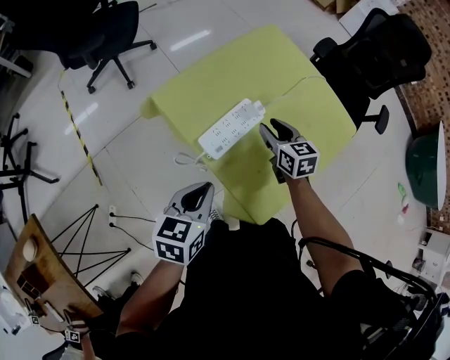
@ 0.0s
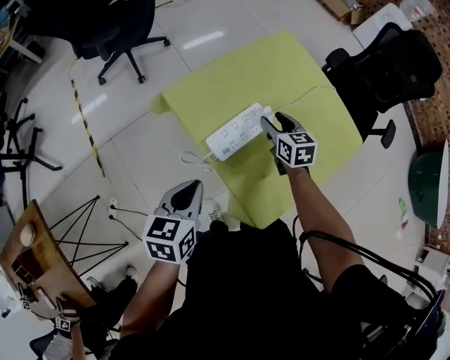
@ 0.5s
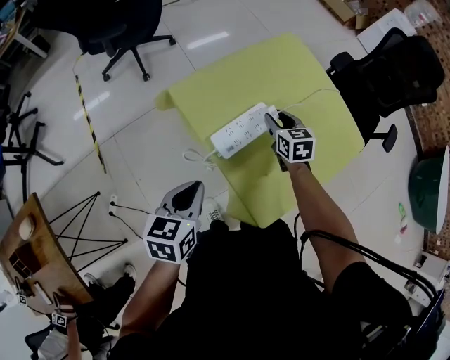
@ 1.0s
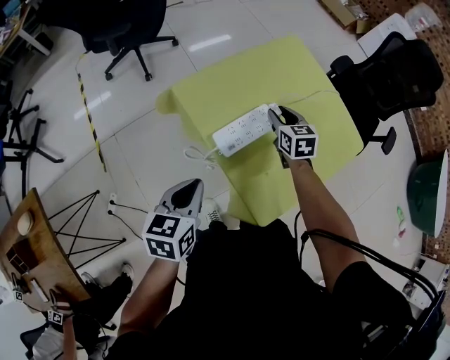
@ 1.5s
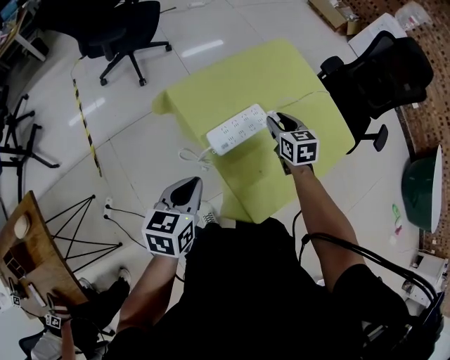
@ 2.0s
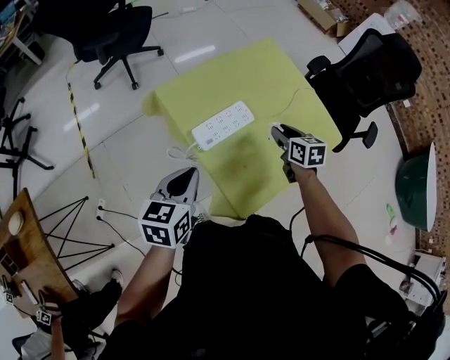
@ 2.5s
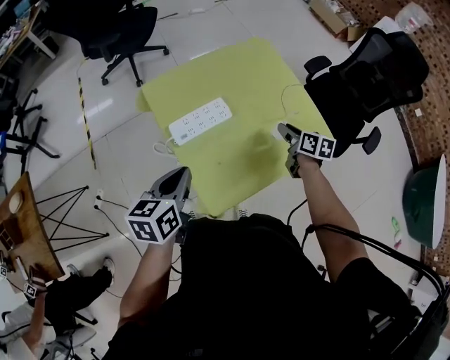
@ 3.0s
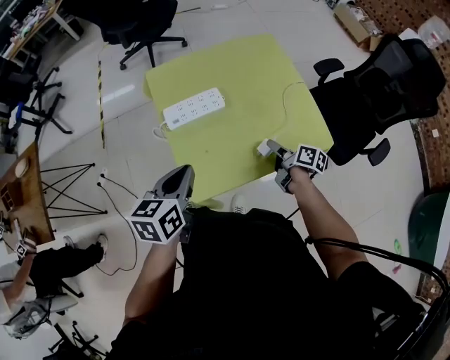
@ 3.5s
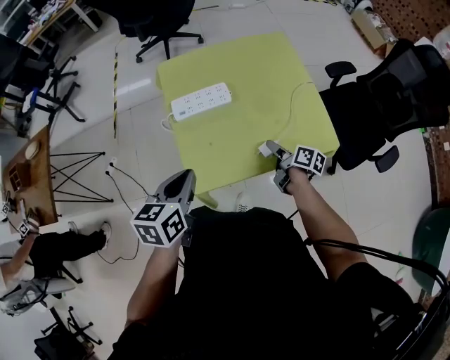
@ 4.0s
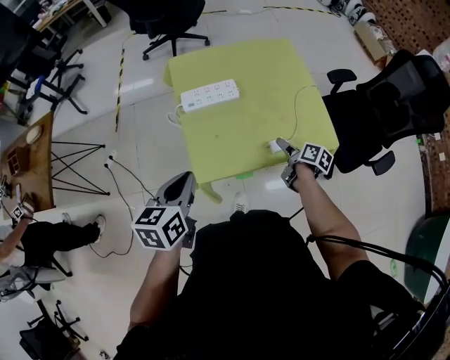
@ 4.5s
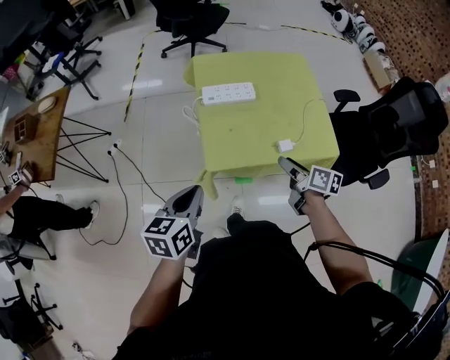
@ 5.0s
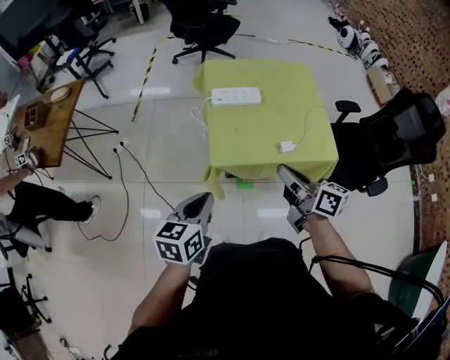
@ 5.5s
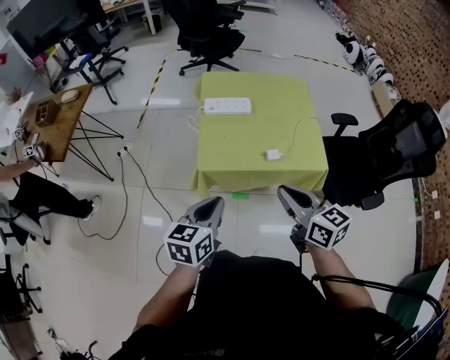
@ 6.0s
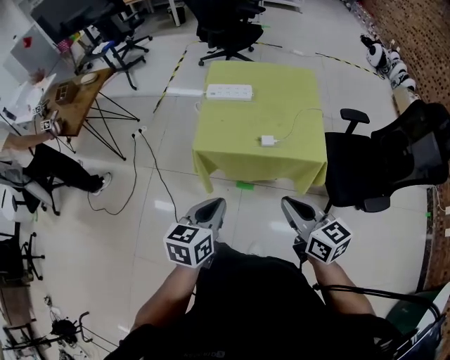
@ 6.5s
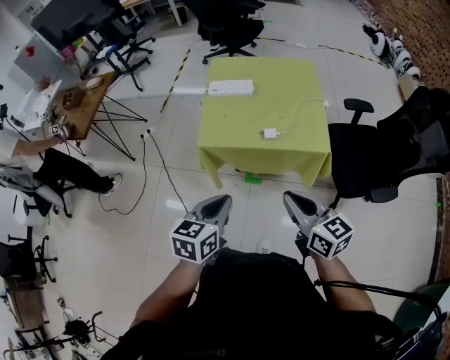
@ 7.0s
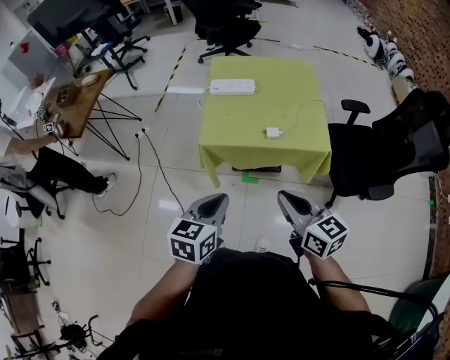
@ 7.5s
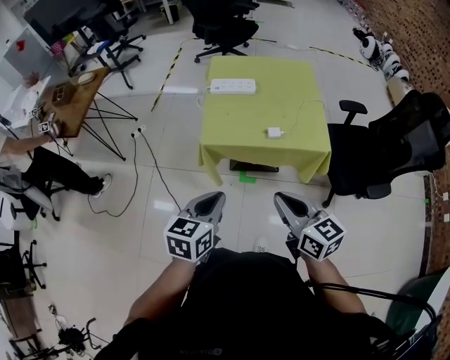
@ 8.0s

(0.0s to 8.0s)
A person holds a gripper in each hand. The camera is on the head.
0.0s - 2.0s: The left gripper shifts by approximately 5 cm.
2.0s - 4.0s: The right gripper shifts by approximately 25 cm, and twists some 50 degrees clockwise, seen from behind, while the left gripper moves some 25 cm, and swivels roughly 20 degrees.
4.0s - 6.0s: The left gripper is displaced backward by some 20 cm, while the right gripper is displaced upward and backward by roughly 35 cm, twists some 50 degrees counterclockwise, seen from behind, and closes up.
6.0s - 8.0s: The two grippers go roughly 10 cm backward.

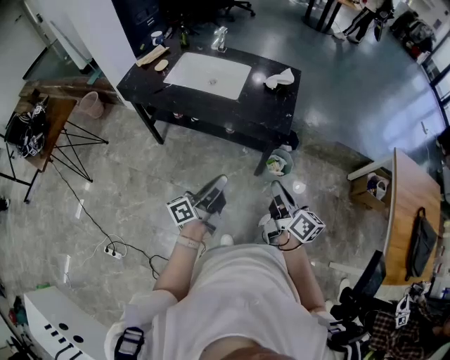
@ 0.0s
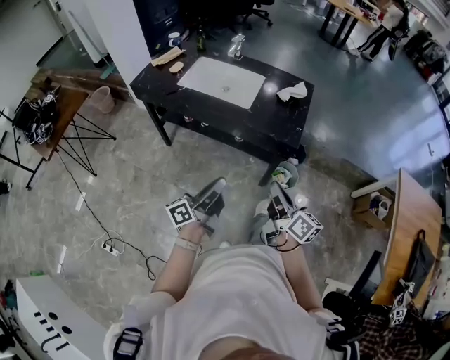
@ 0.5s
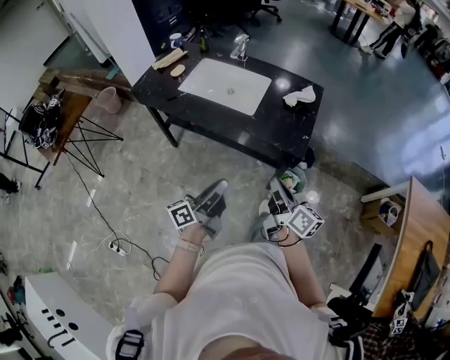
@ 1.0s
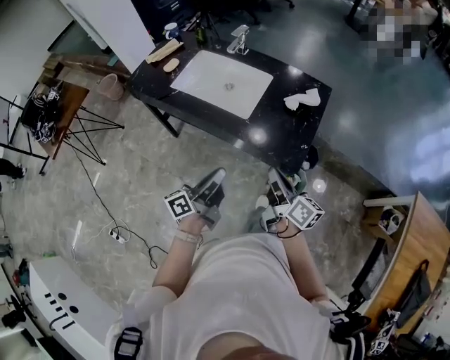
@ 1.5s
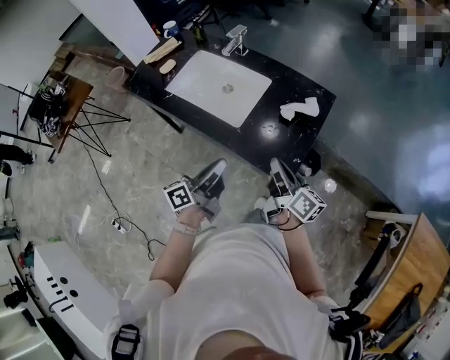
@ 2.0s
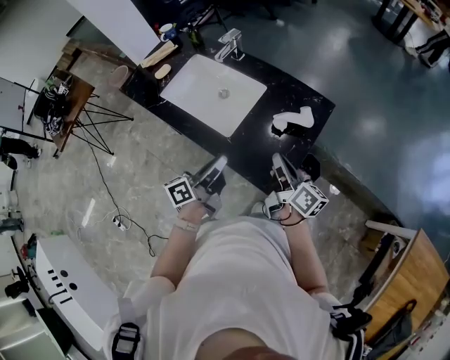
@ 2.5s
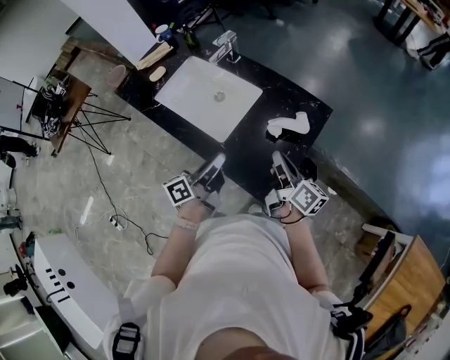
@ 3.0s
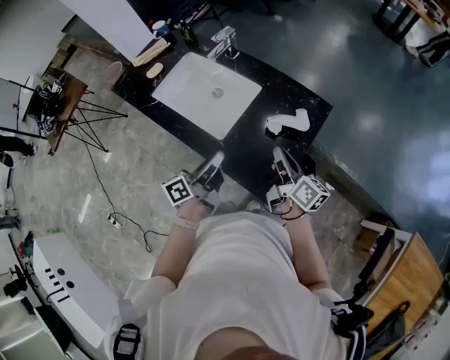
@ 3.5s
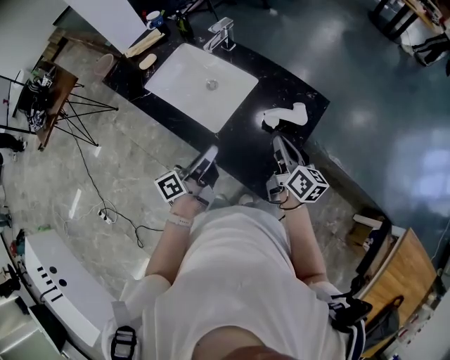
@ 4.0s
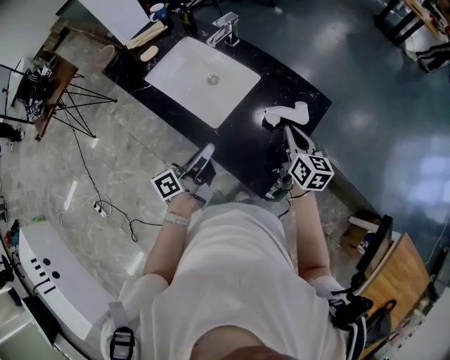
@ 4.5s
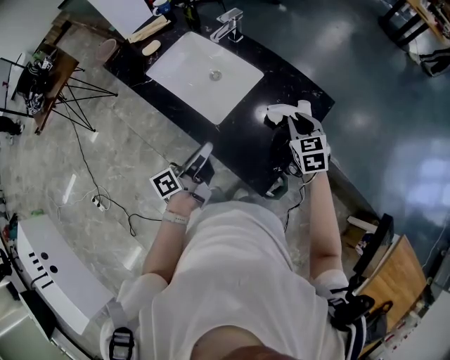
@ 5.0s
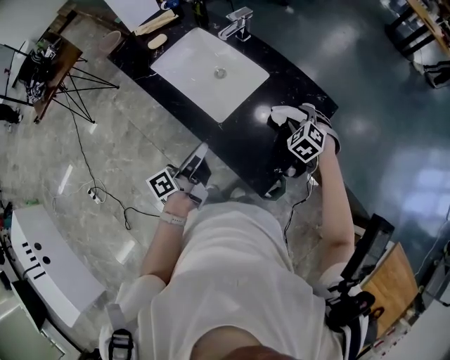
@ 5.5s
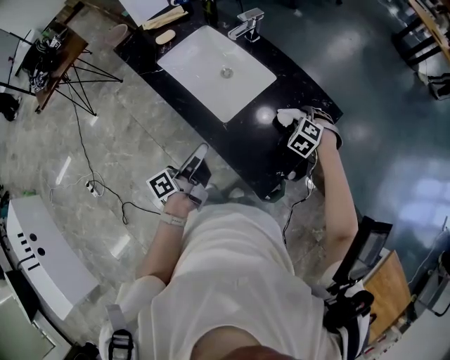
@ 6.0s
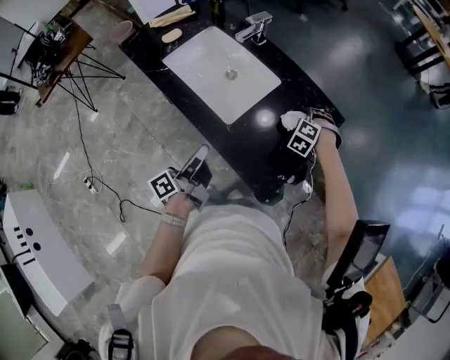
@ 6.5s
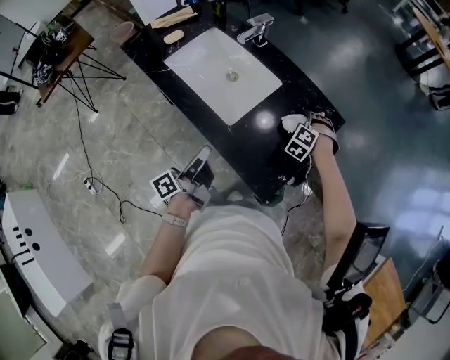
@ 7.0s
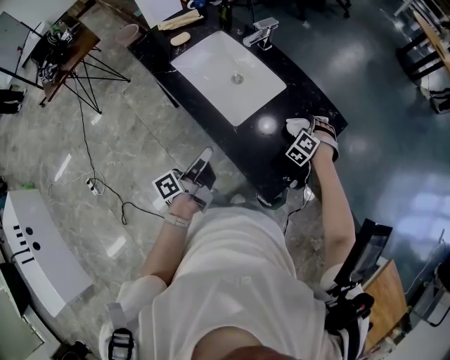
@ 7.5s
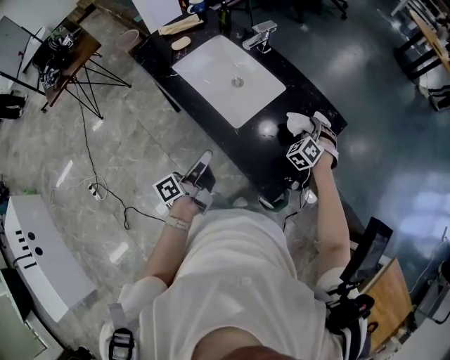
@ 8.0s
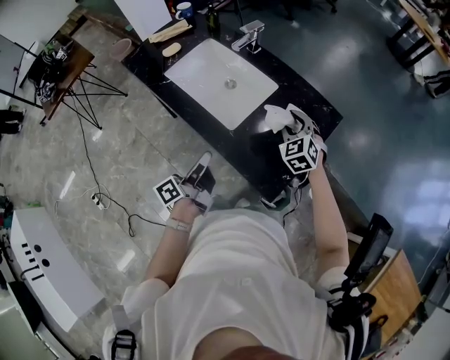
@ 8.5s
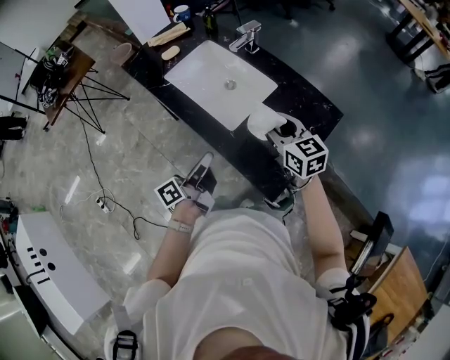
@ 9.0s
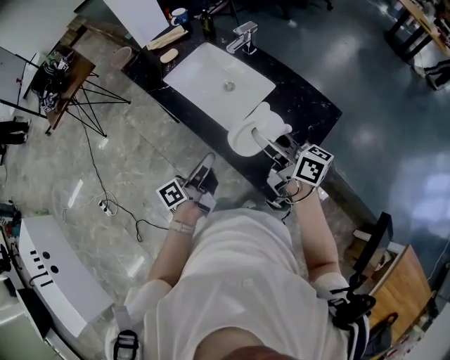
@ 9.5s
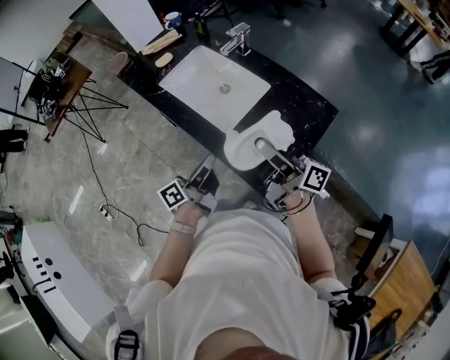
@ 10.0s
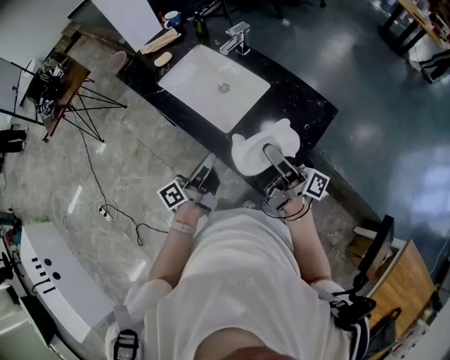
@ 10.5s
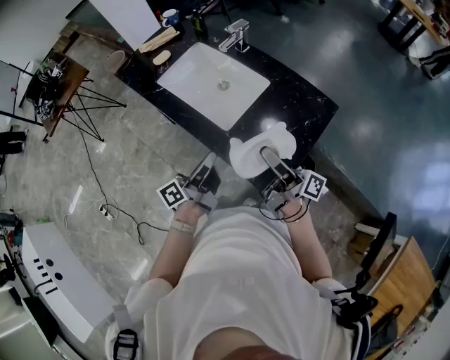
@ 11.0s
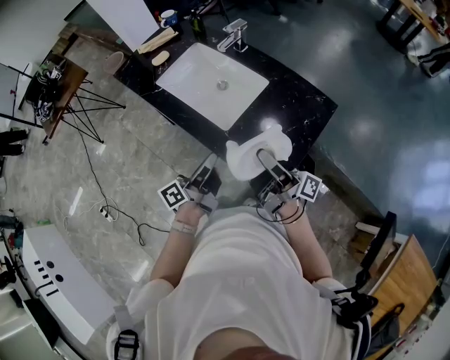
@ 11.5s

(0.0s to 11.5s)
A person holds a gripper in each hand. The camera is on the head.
0.0s - 2.0s: The two grippers go about 30 cm forward. The left gripper swivels approximately 20 degrees.
2.0s - 4.0s: The left gripper goes about 10 cm forward, while the right gripper shifts roughly 15 cm forward and to the right.
4.0s - 6.0s: The left gripper is displaced to the left by some 5 cm; the right gripper shifts roughly 15 cm downward and forward, twists about 100 degrees counterclockwise, seen from behind, and opens its fingers.
6.0s - 7.5s: The grippers move only a little.
7.5s - 9.5s: The right gripper heads upward, covering roughly 25 cm, and tilts its fingers about 50 degrees upward.
9.5s - 11.5s: The right gripper is displaced backward by about 5 cm, and rotates approximately 50 degrees.

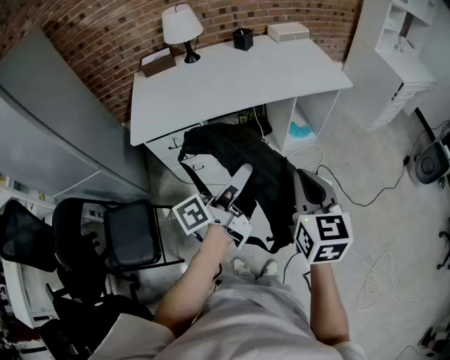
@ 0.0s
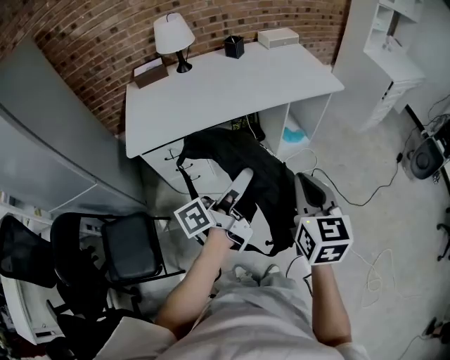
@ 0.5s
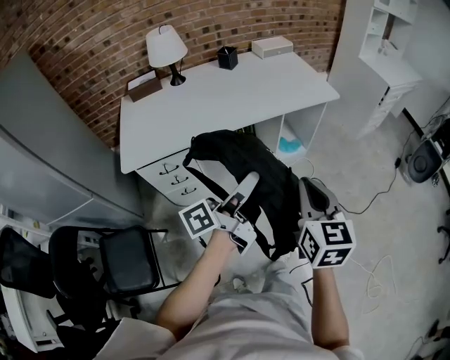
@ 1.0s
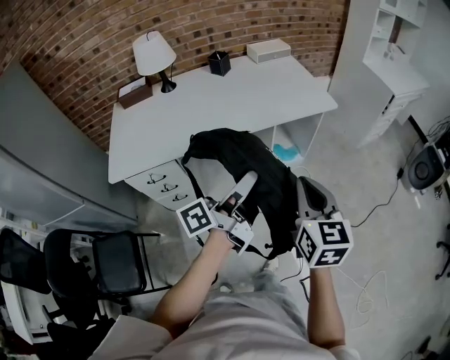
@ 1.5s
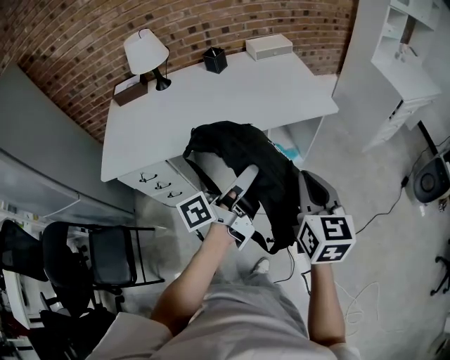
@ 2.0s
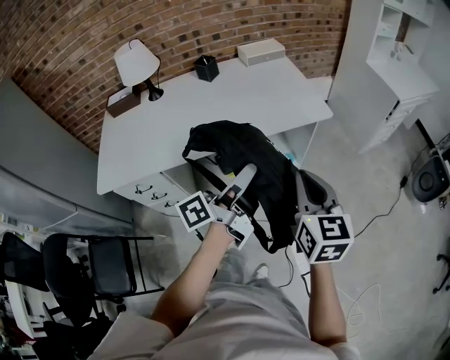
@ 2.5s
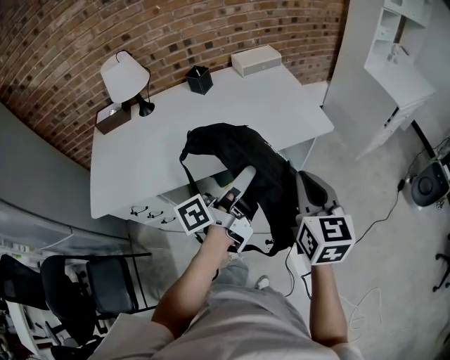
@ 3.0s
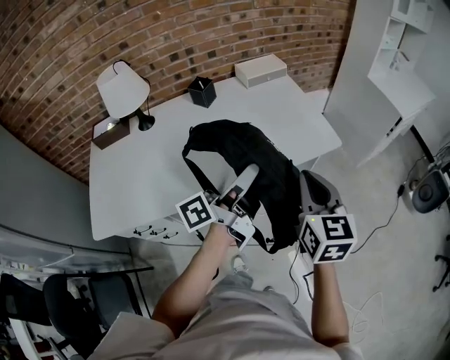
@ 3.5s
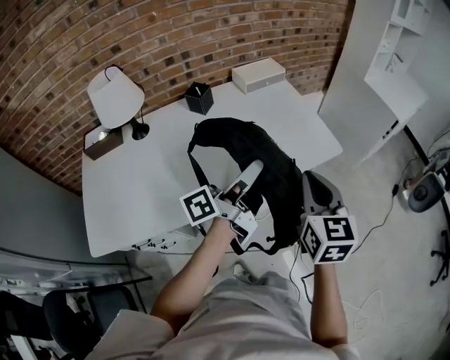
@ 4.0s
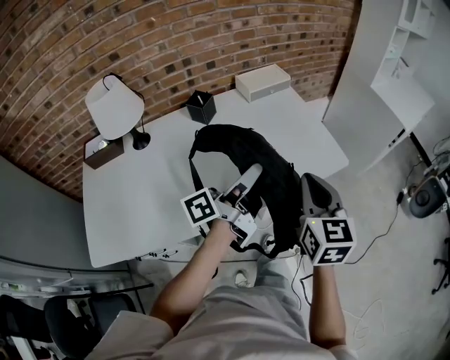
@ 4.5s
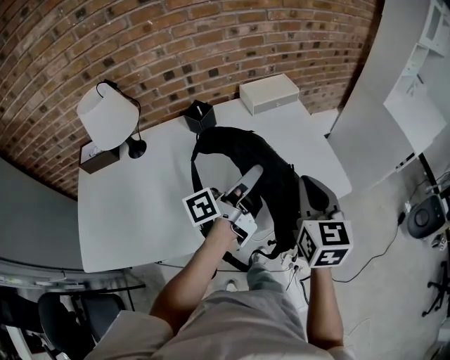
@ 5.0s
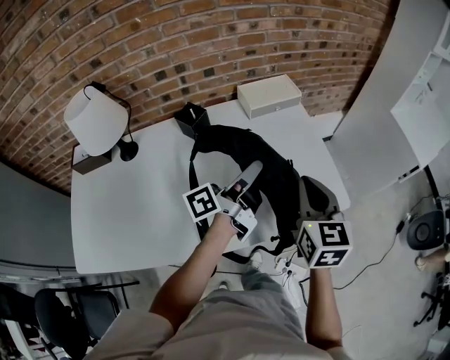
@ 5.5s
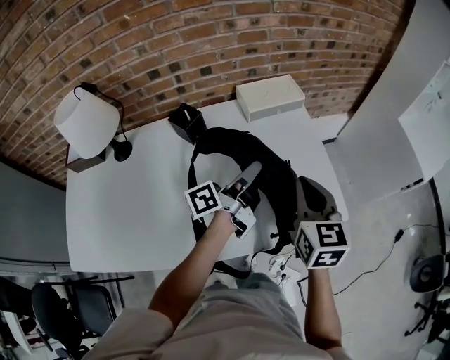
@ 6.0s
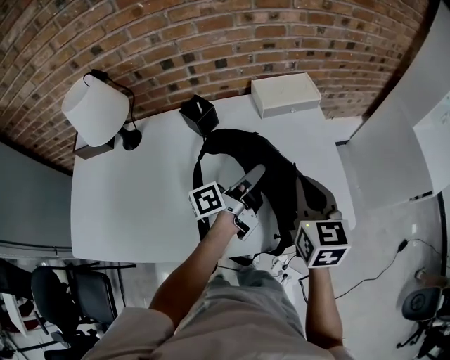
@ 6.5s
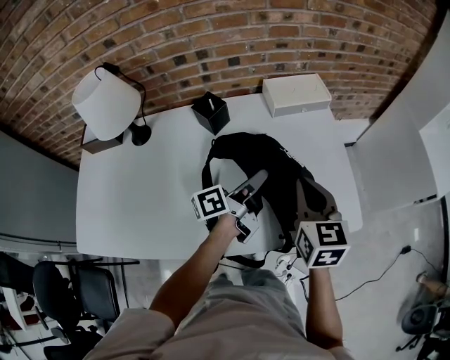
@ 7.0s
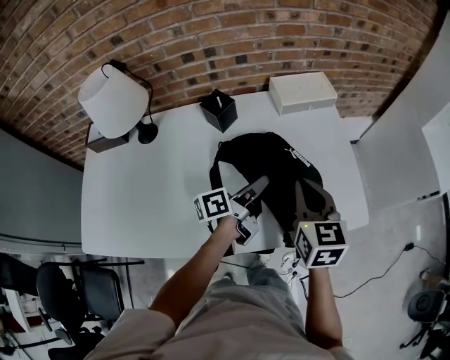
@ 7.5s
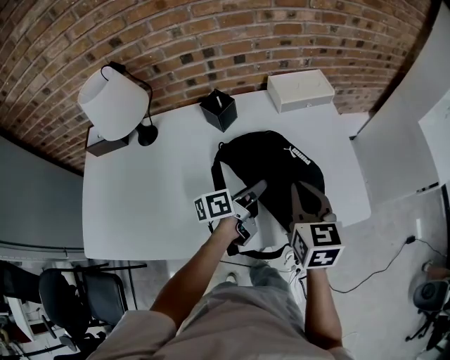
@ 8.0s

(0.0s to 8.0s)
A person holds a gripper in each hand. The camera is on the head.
0.0s - 2.0s: The two grippers go some 25 cm forward and to the right.
2.0s - 4.0s: The right gripper moves forward and to the left, about 25 cm, while the left gripper goes about 25 cm forward.
4.0s - 6.0s: Both grippers travel together forward, about 30 cm.
6.0s - 8.0s: The right gripper is displaced to the left by approximately 10 cm; the left gripper heads downward, to the left and backward, covering roughly 15 cm, and swivels approximately 20 degrees.
